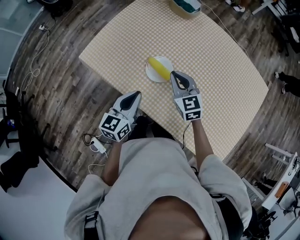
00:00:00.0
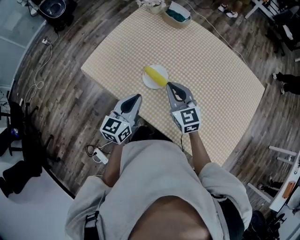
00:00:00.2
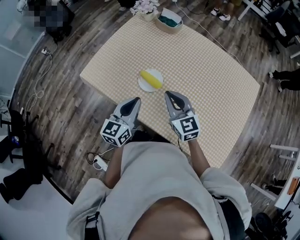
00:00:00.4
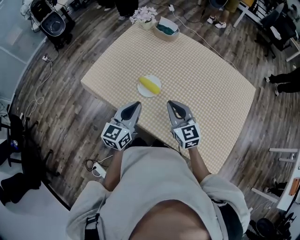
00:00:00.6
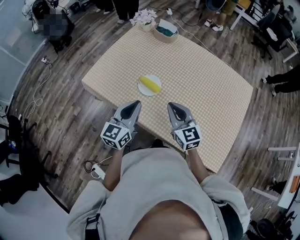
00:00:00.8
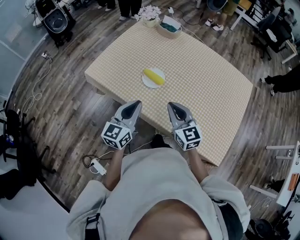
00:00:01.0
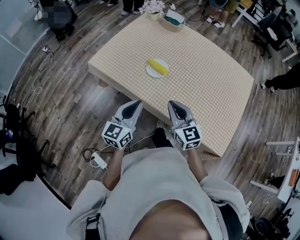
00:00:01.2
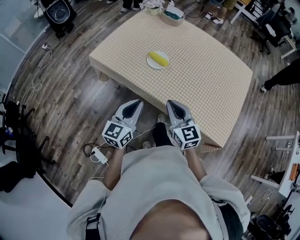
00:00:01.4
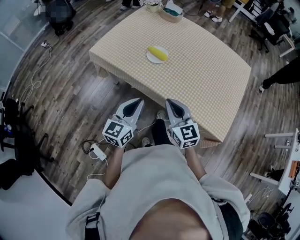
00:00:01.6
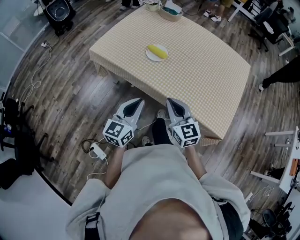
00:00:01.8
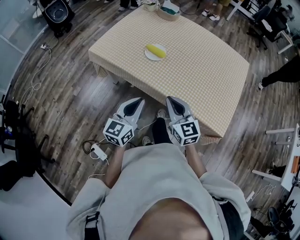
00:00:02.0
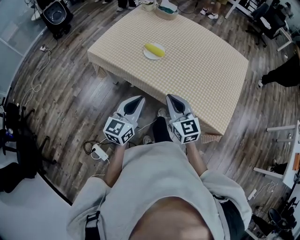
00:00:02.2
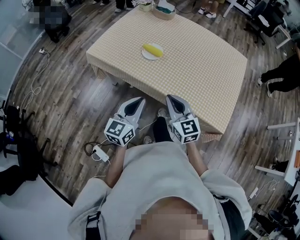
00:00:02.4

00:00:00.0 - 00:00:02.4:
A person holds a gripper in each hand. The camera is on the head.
00:00:00.0 - 00:00:01.2: The left gripper is displaced backward and upward by approximately 20 cm. The right gripper is displaced backward by about 25 cm.
00:00:01.2 - 00:00:02.4: The grippers both shift backward by roughly 10 cm.

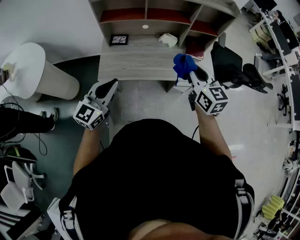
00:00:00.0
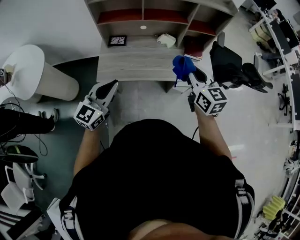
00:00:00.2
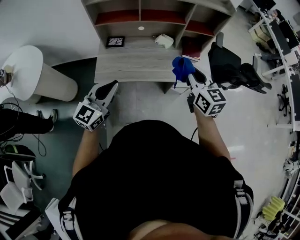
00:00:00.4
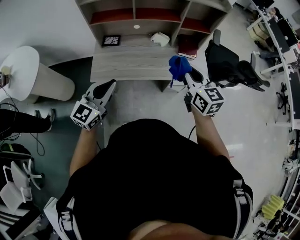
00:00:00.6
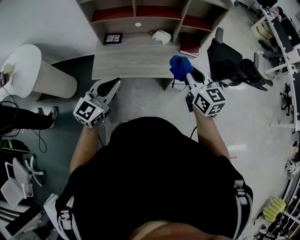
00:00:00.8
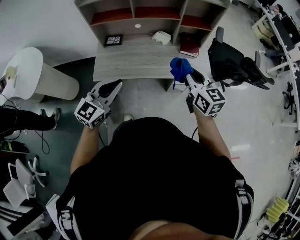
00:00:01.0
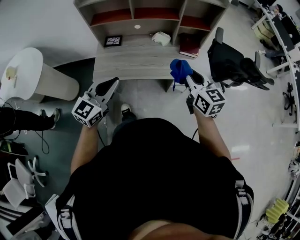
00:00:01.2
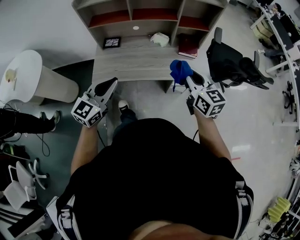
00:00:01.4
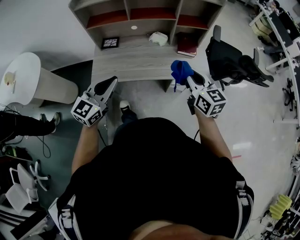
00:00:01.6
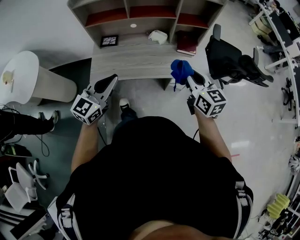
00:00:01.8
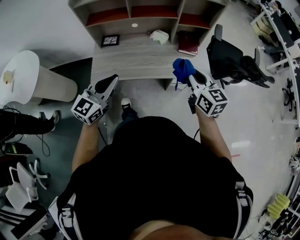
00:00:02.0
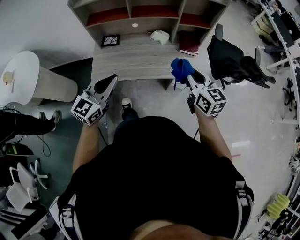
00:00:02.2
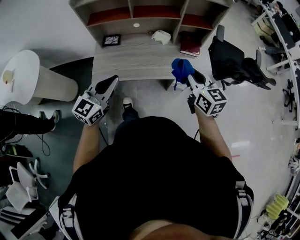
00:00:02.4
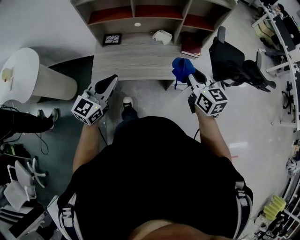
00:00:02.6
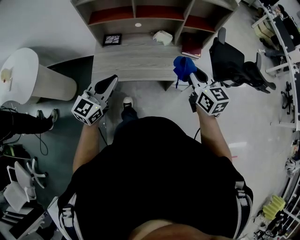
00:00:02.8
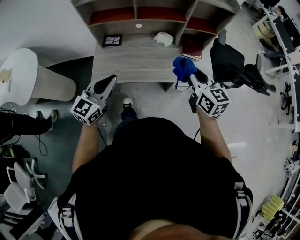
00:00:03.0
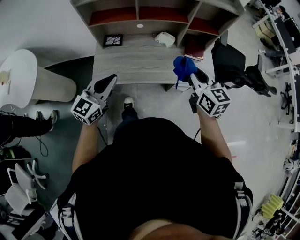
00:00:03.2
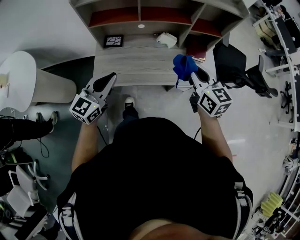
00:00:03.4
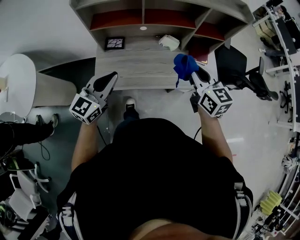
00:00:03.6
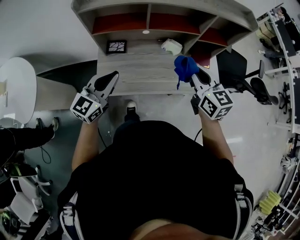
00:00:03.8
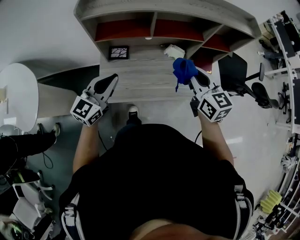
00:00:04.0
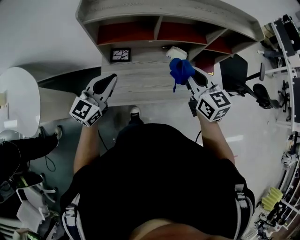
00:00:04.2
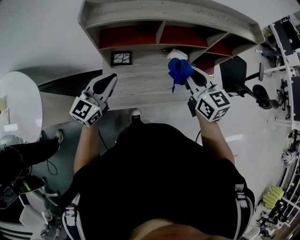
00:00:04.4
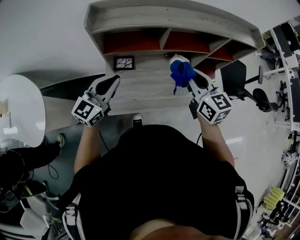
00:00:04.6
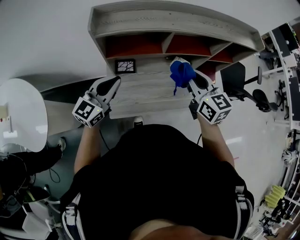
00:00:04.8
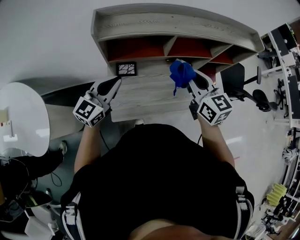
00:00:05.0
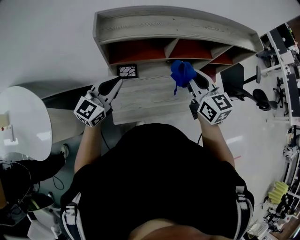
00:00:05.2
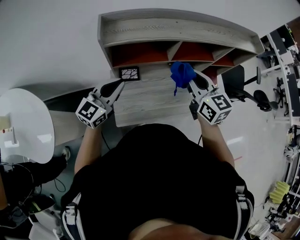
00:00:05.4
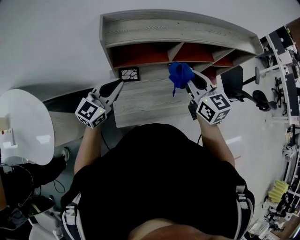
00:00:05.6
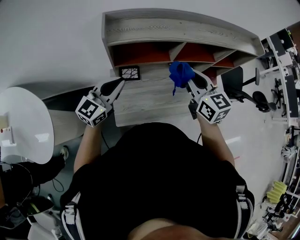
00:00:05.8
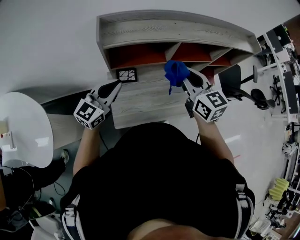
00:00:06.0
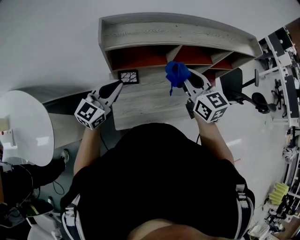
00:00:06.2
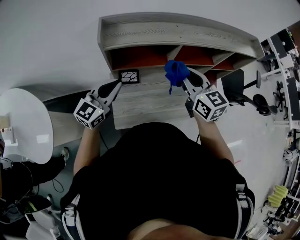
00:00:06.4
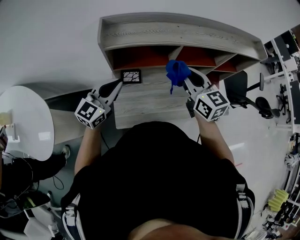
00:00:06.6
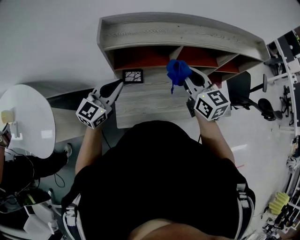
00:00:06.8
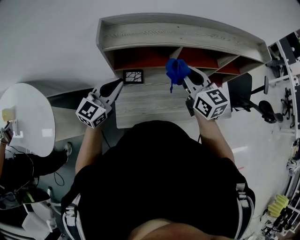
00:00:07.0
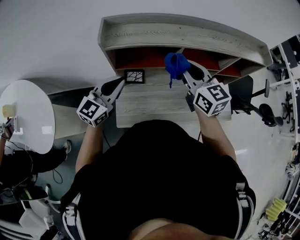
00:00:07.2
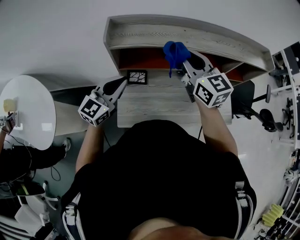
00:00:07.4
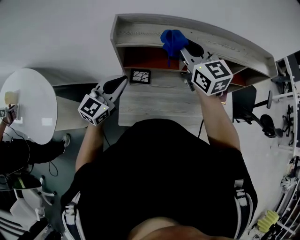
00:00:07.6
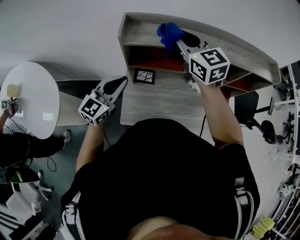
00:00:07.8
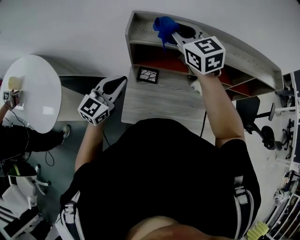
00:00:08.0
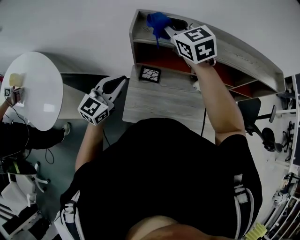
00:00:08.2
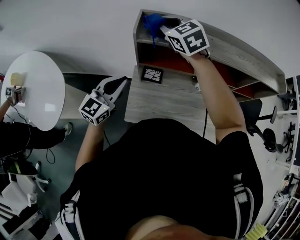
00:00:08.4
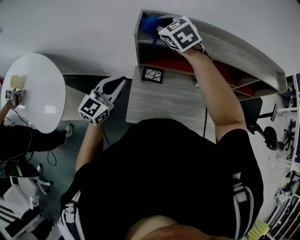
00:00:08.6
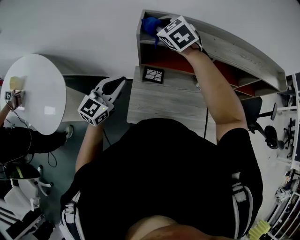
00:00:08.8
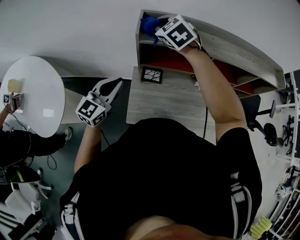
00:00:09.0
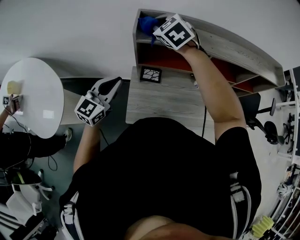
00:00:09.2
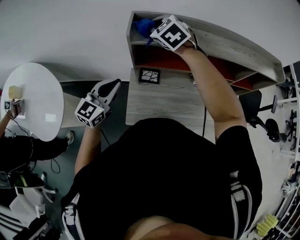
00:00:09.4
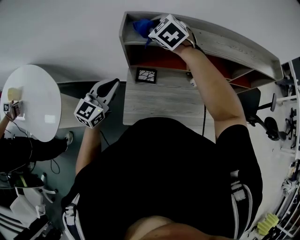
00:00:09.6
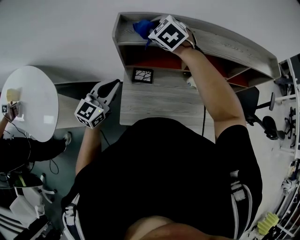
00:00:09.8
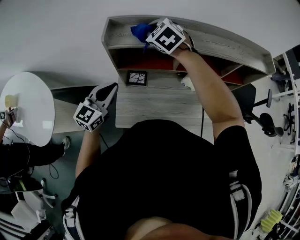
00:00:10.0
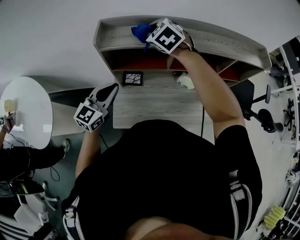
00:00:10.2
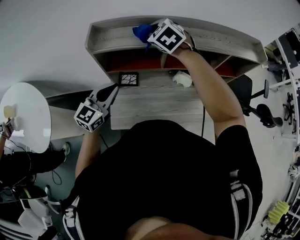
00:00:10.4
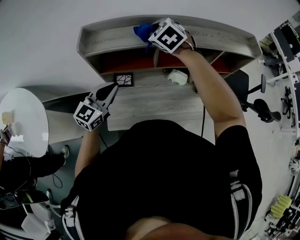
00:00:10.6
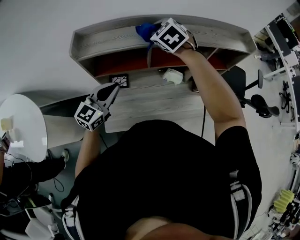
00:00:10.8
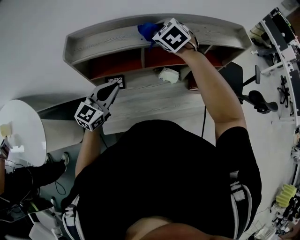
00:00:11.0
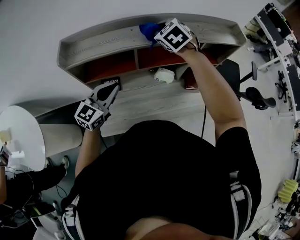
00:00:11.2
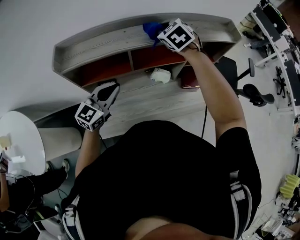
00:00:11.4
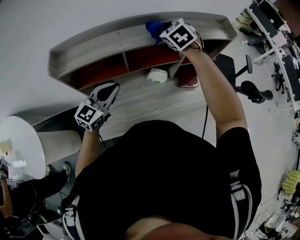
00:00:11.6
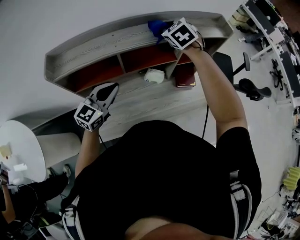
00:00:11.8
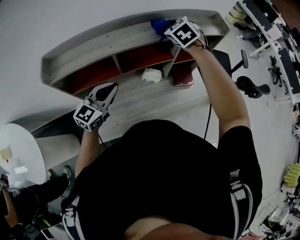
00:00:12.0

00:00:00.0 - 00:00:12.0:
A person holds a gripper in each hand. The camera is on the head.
00:00:00.0 - 00:00:01.6: Both grippers move to the right, some 10 cm.
00:00:01.6 - 00:00:03.0: The right gripper is displaced forward by approximately 5 cm. The left gripper moves to the left, about 5 cm.
00:00:03.0 - 00:00:04.4: The right gripper is displaced to the left and forward by roughly 25 cm, while the left gripper moves forward and to the left, about 25 cm.
00:00:04.4 - 00:00:06.0: The right gripper travels to the left by approximately 10 cm. Meanwhile the left gripper travels to the left and forward by approximately 10 cm.
00:00:06.0 - 00:00:07.6: The right gripper shifts about 15 cm forward, upward and to the left.
00:00:07.6 - 00:00:09.0: The right gripper moves to the left and forward, approximately 20 cm, and turns by about 40 degrees, while the left gripper heads to the left, covering some 10 cm.
00:00:09.0 - 00:00:10.4: The grippers both shift to the right by about 15 cm.
00:00:10.4 - 00:00:12.0: The left gripper shifts some 20 cm to the right and forward; the right gripper moves to the right, about 30 cm, and rotates some 20 degrees.

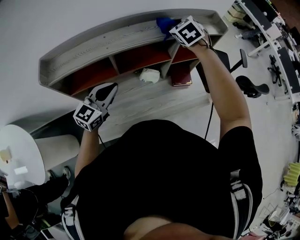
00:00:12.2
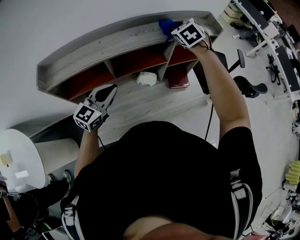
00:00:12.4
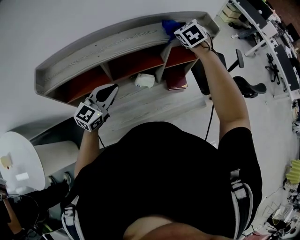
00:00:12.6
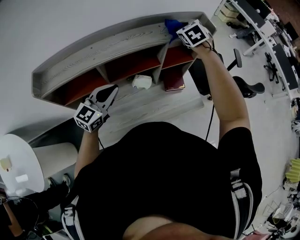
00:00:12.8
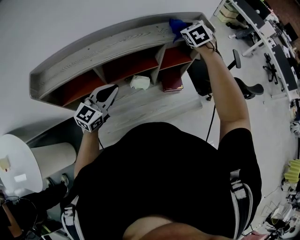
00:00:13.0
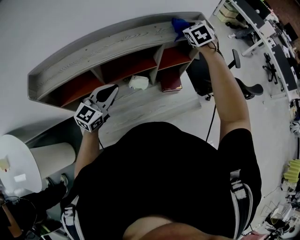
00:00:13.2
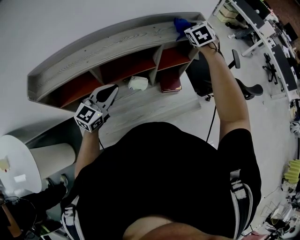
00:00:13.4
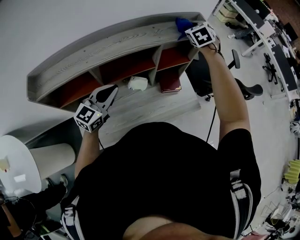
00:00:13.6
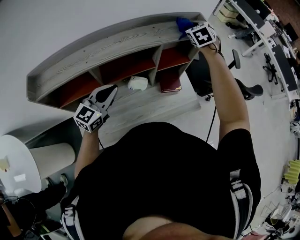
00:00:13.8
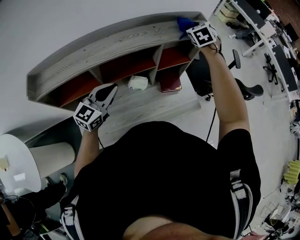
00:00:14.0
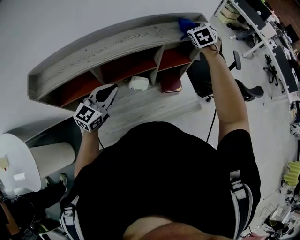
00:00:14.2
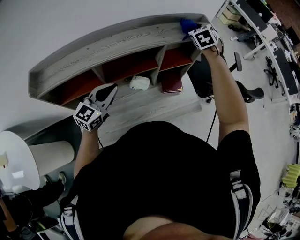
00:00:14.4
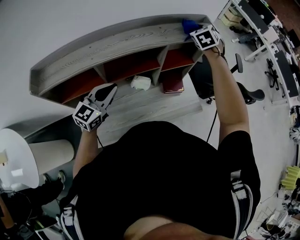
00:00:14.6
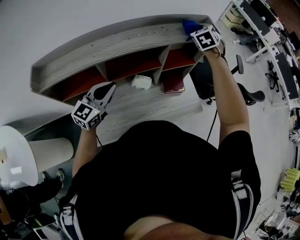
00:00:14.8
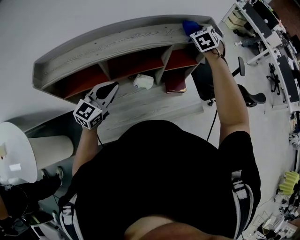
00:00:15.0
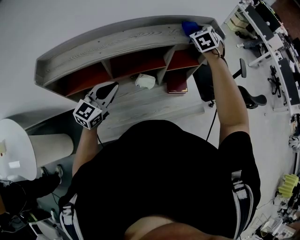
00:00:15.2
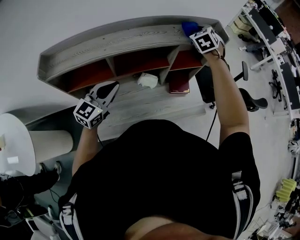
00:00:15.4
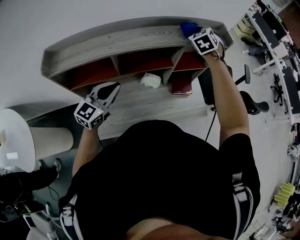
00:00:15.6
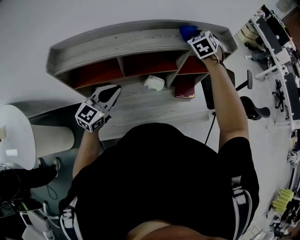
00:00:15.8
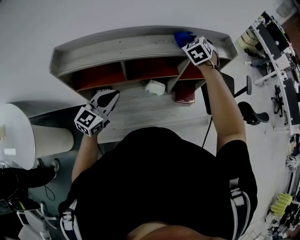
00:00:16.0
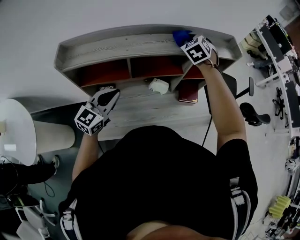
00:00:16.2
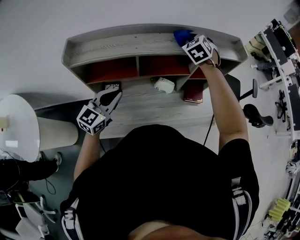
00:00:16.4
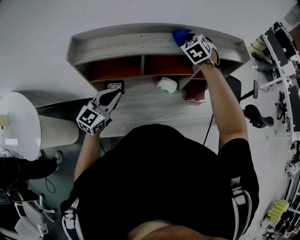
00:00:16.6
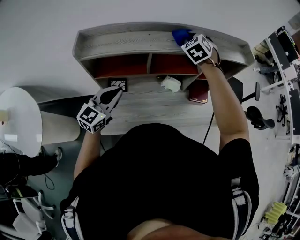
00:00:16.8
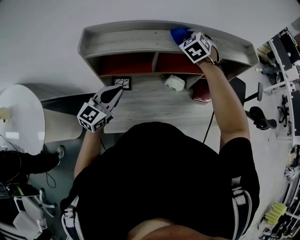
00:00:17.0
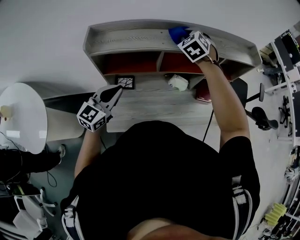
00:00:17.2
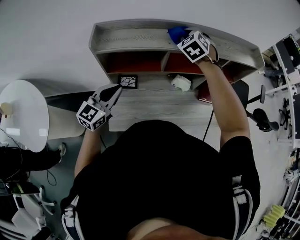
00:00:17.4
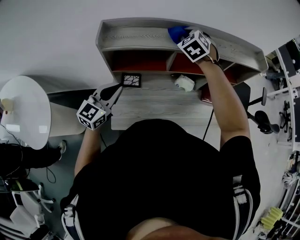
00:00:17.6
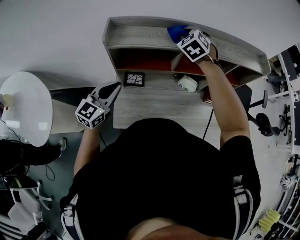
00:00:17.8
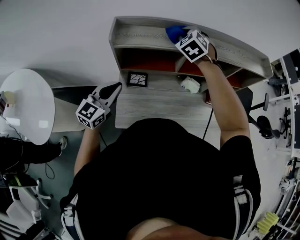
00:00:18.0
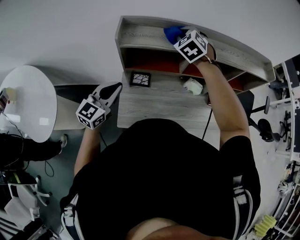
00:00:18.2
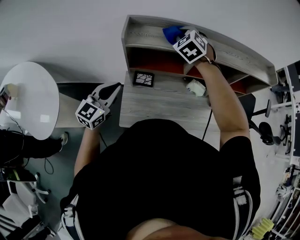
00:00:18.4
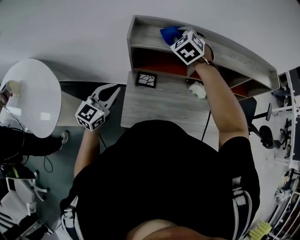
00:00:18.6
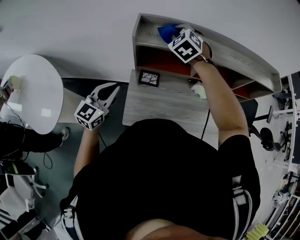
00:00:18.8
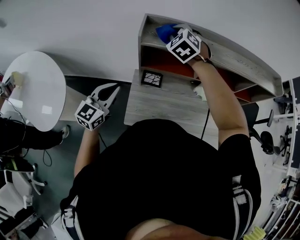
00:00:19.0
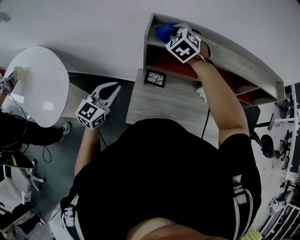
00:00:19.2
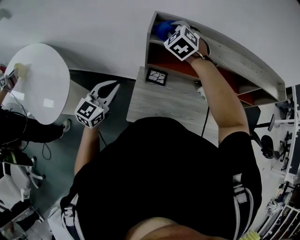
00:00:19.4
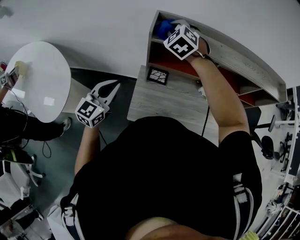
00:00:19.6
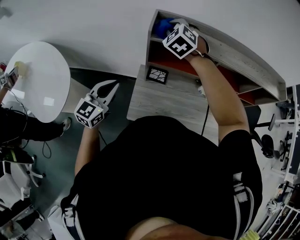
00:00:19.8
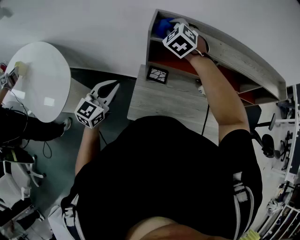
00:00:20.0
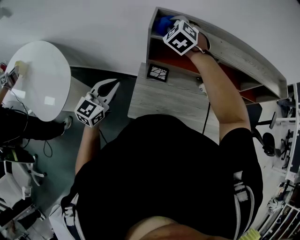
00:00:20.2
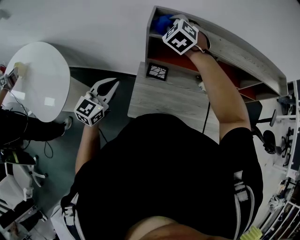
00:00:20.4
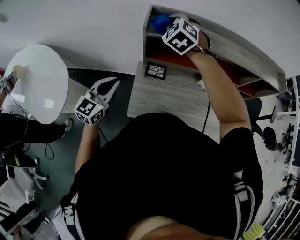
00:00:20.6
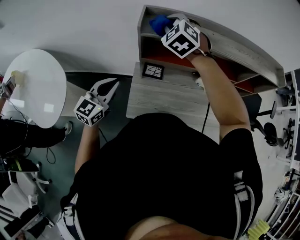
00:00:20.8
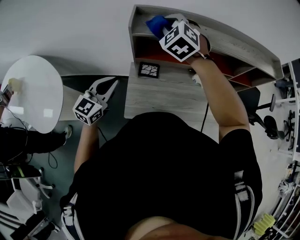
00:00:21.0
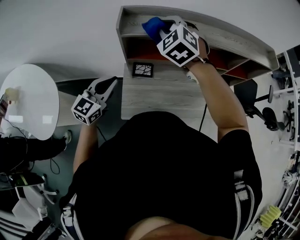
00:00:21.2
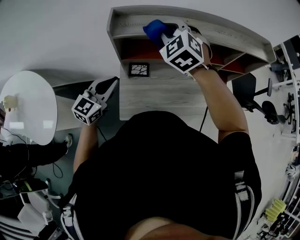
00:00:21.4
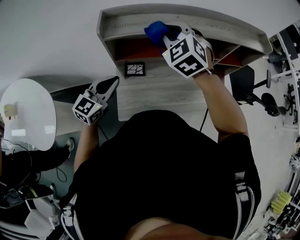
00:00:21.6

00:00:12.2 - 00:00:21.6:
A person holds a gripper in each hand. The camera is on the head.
00:00:12.2 - 00:00:13.8: The left gripper is displaced forward and to the right by some 10 cm, while the right gripper travels to the right and forward by some 20 cm.
00:00:13.8 - 00:00:15.4: The right gripper is displaced to the left by some 5 cm; the left gripper moves approximately 5 cm.
00:00:15.4 - 00:00:17.0: The right gripper heads to the left and backward, covering approximately 25 cm. The left gripper travels to the left and backward by about 15 cm.
00:00:17.0 - 00:00:18.4: The right gripper travels to the left by roughly 20 cm, while the left gripper goes approximately 15 cm to the left and backward.
00:00:18.4 - 00:00:20.0: The left gripper moves to the left, about 5 cm; the right gripper moves to the left, some 15 cm.
00:00:20.0 - 00:00:21.6: The right gripper is displaced to the right and backward by roughly 20 cm. Meanwhile the left gripper shifts some 15 cm to the right and forward.
